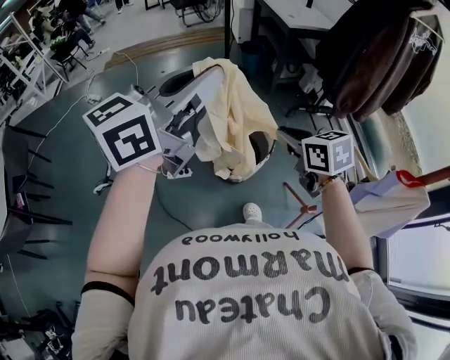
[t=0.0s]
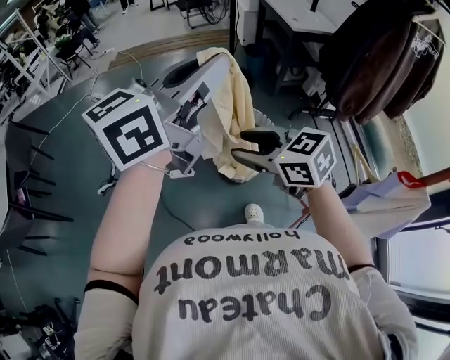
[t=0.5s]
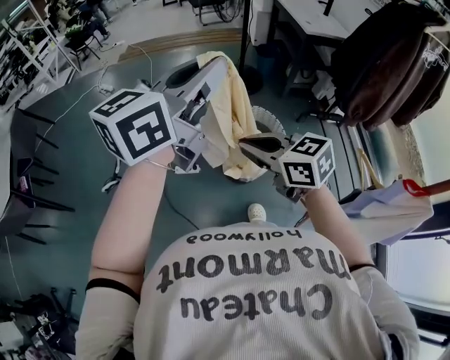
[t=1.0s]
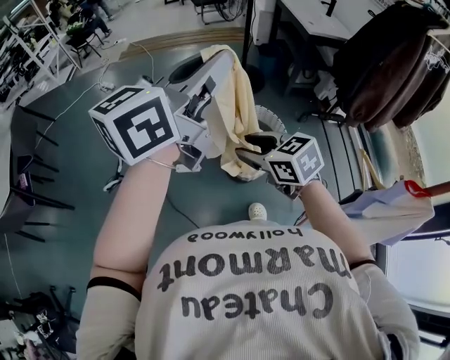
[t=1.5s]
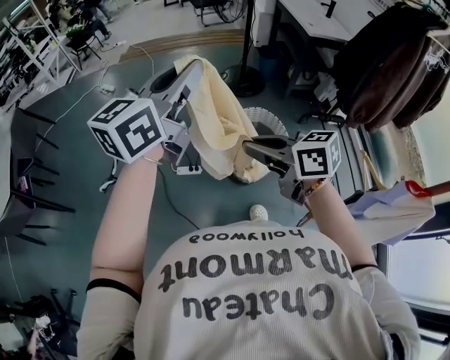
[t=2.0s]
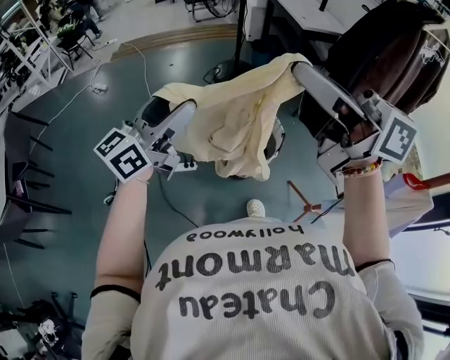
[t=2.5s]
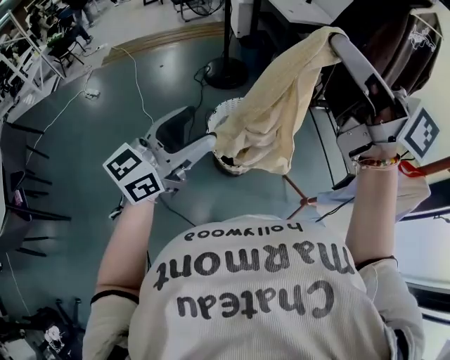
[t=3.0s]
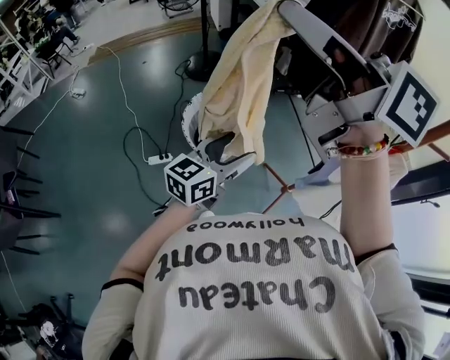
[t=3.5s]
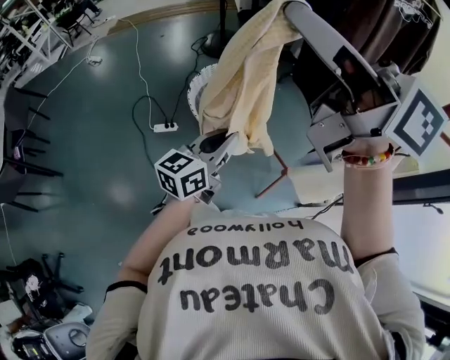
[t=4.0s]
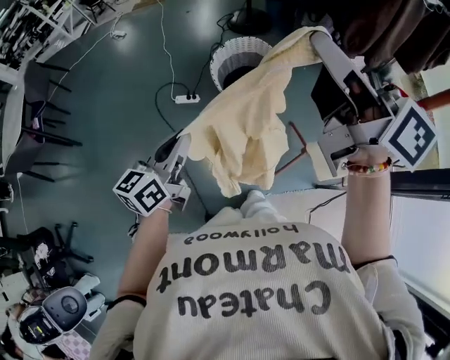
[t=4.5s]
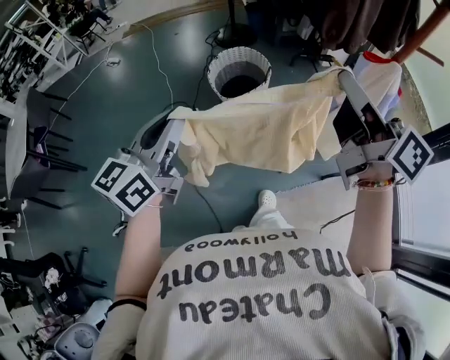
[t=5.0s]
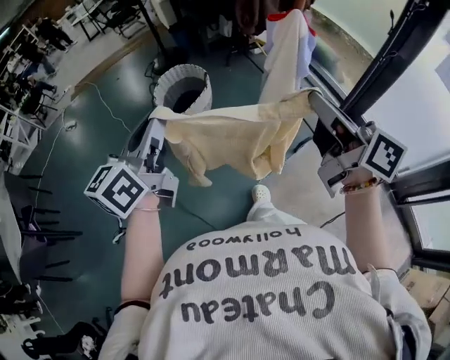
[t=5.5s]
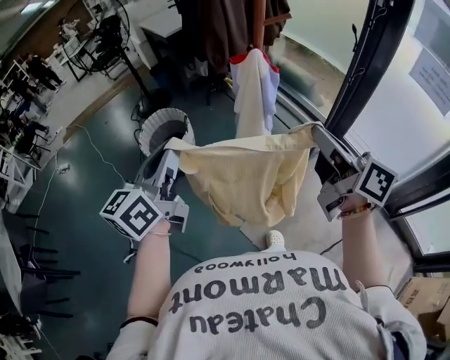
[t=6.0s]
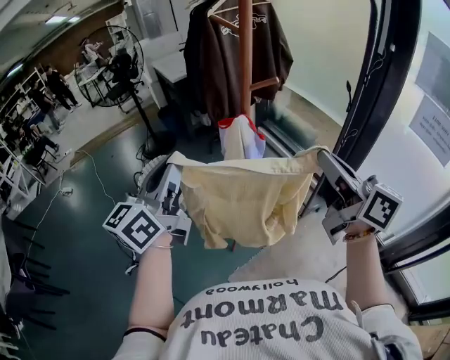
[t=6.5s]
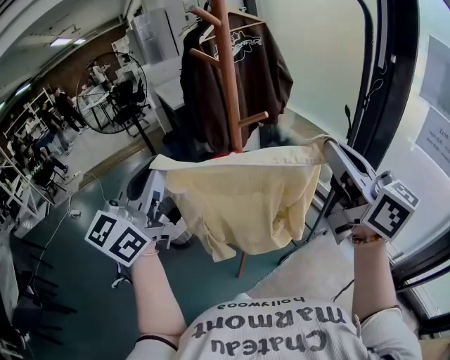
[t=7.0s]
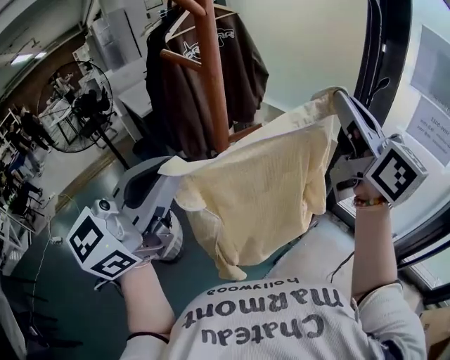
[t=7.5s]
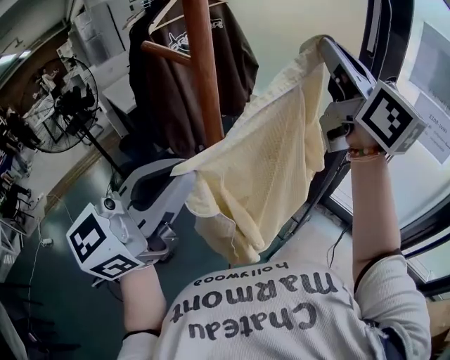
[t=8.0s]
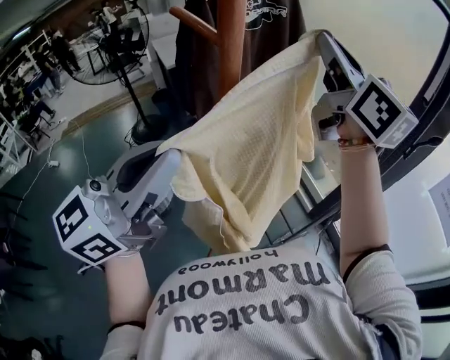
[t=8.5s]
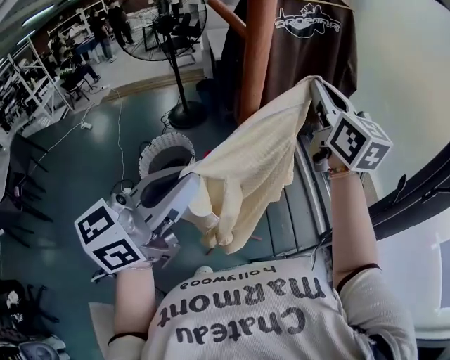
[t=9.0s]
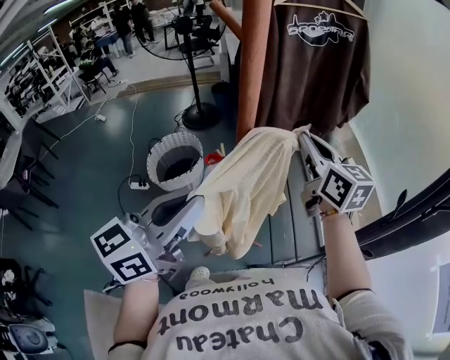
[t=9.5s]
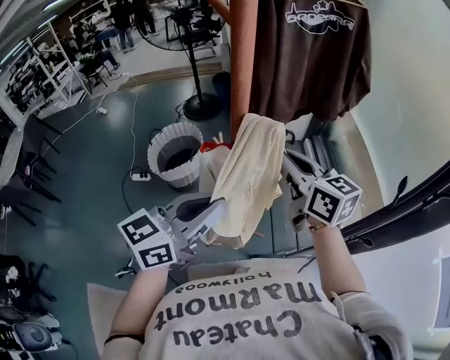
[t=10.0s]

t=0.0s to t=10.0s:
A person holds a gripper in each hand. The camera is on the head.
t=0.0s to t=2.0s: The right gripper moves up and down over approximately 5 cm, changing direction 2 times, turns by approximately 30 degrees, and opens and closes again; the left gripper shifts by roughly 10 cm.
t=2.0s to t=4.0s: The right gripper heads upward, to the right and backward, covering approximately 40 cm, and points its fingers some 30 degrees further upward. The left gripper is displaced backward, to the right and downward by about 40 cm, and opens, then closes once more.
t=4.0s to t=6.0s: The right gripper ends up about 40 cm from where it was, and swivels some 50 degrees. The left gripper shifts by approximately 30 cm.
t=6.0s to t=8.0s: The left gripper ends up about 35 cm from where it was, and rotates approximately 40 degrees; the right gripper moves approximately 50 cm, and turns by roughly 40 degrees.
t=8.0s to t=10.0s: The left gripper shifts about 20 cm downward, and swivels approximately 50 degrees. Meanwhile the right gripper travels downward by roughly 30 cm, and rotates some 60 degrees.

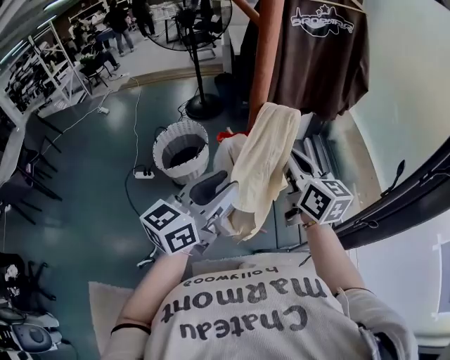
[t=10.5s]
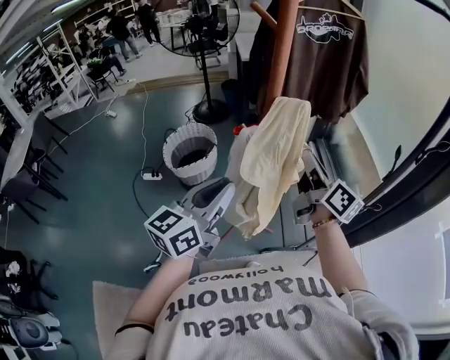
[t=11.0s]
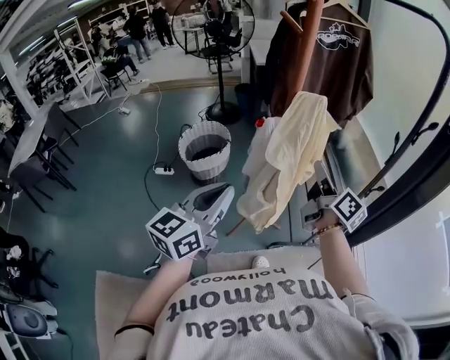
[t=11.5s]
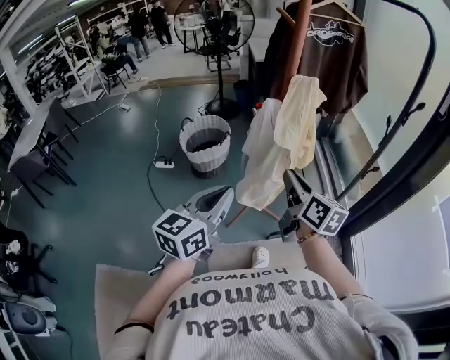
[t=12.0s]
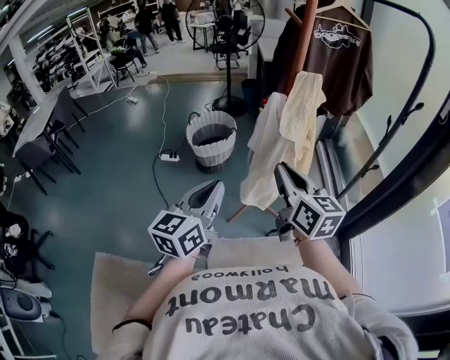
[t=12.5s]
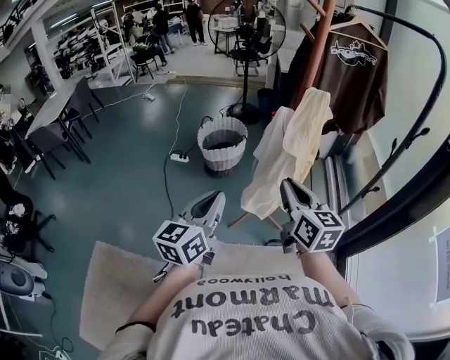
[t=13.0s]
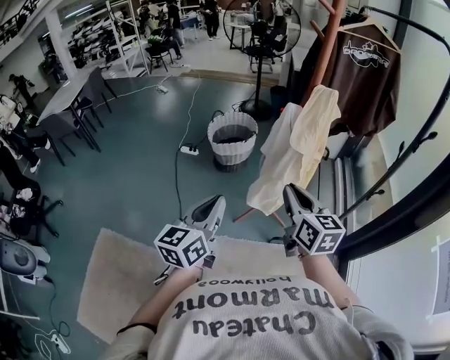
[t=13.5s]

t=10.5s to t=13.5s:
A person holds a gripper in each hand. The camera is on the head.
t=10.5s to t=12.0s: The two grippers go approximately 20 cm backward. The left gripper closes.
t=12.0s to t=13.5s: The left gripper travels backward by some 5 cm, and turns by some 20 degrees. Meanwhile the right gripper swivels about 20 degrees.

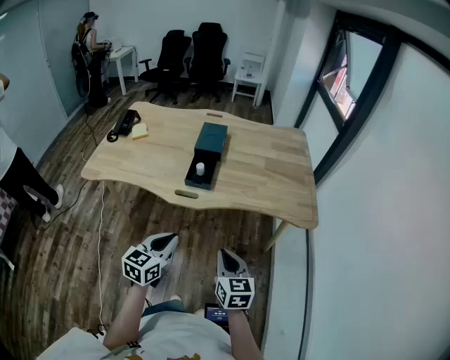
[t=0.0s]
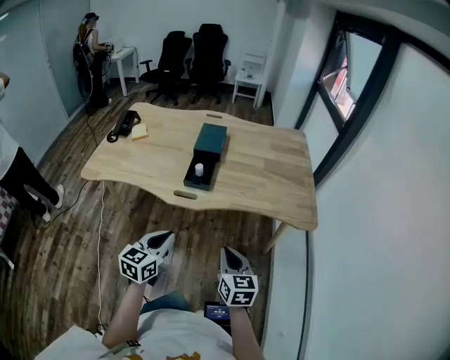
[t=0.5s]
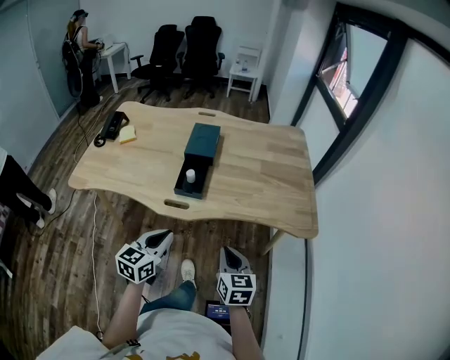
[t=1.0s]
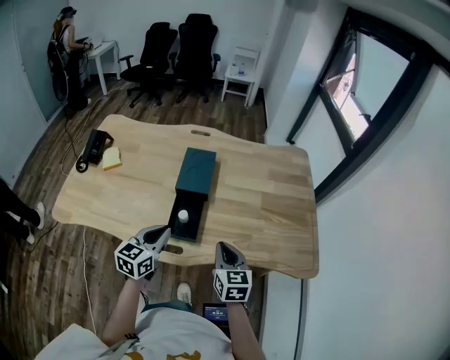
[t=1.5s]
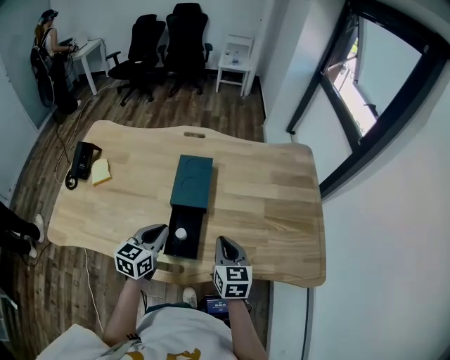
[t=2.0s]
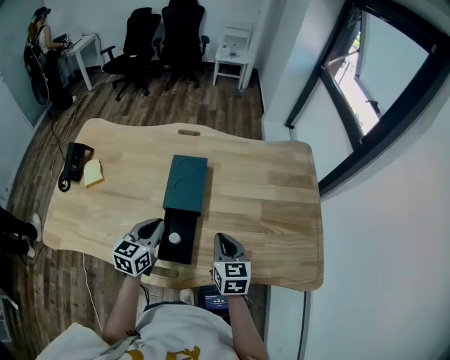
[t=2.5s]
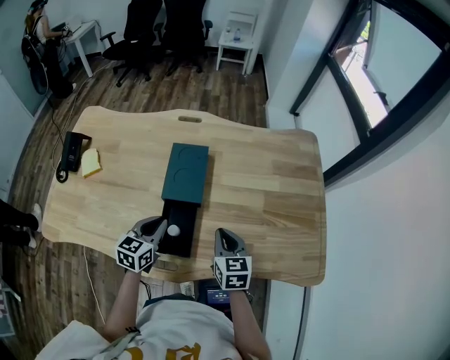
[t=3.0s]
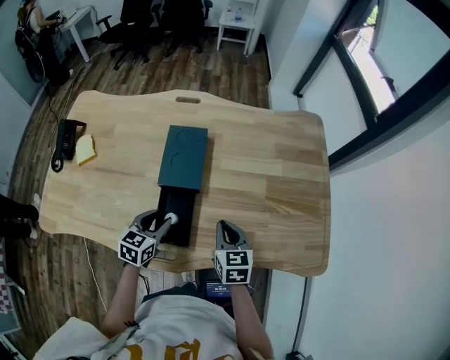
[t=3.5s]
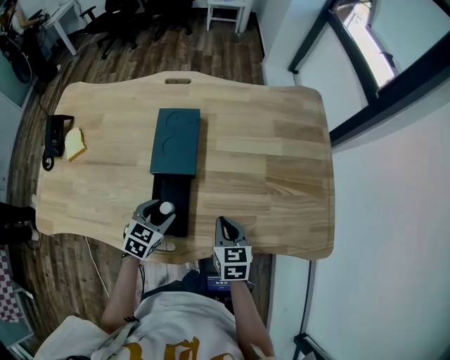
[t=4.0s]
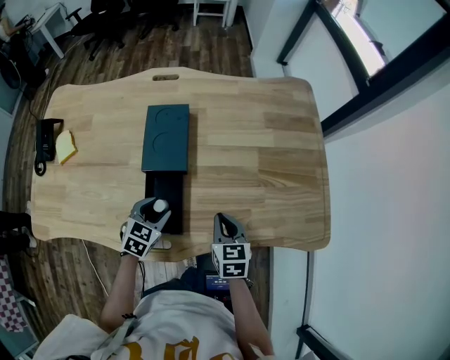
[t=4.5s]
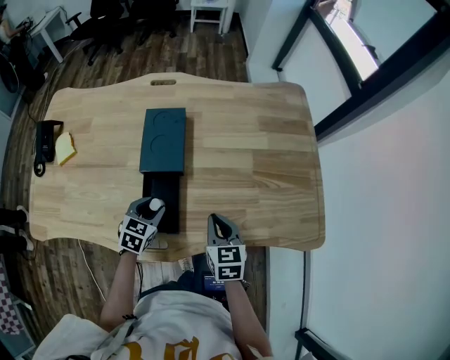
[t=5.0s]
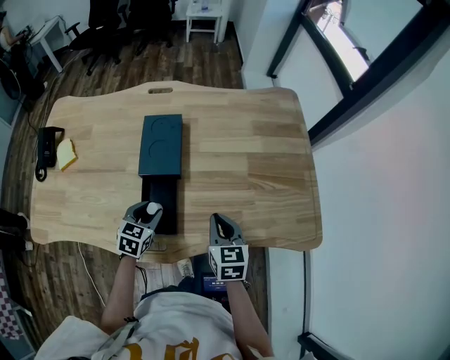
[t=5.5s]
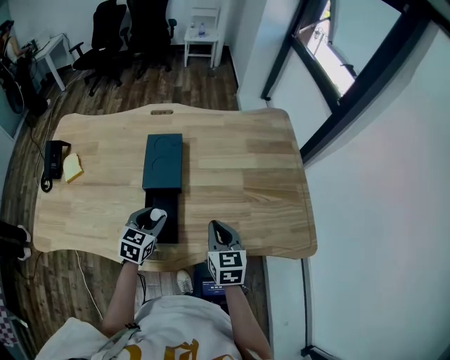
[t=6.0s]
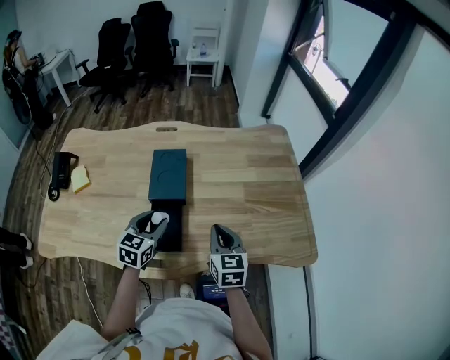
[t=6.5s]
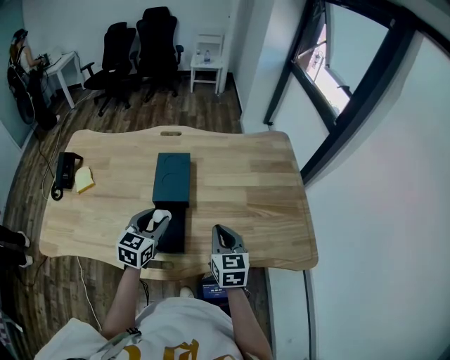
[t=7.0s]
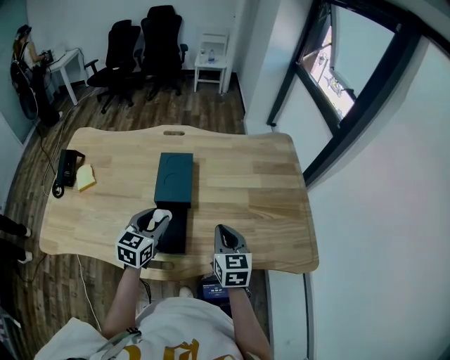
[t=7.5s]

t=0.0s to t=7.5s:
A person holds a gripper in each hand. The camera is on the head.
t=0.0s to t=2.0s: The pair of grippers is taken forward, approximately 40 cm.
t=2.0s to t=4.0s: The two grippers go about 10 cm downward. The left gripper changes its angle by about 30 degrees, and opens.
t=4.0s to t=5.5s: The right gripper is displaced upward by roughly 5 cm.
t=5.5s to t=7.5s: The right gripper moves upward, approximately 5 cm; the left gripper travels upward by about 15 cm.

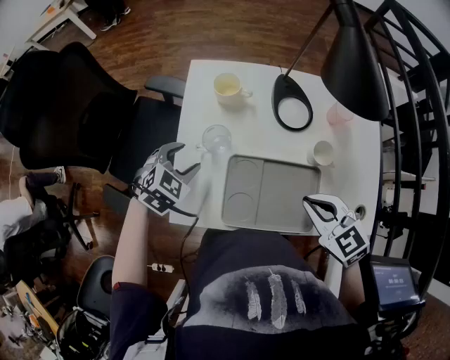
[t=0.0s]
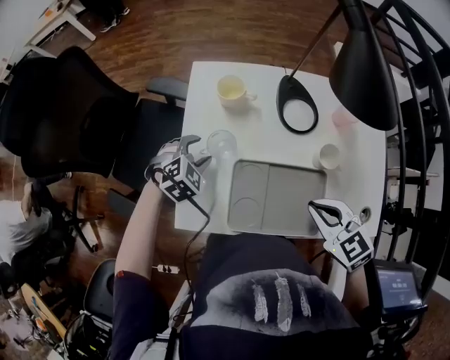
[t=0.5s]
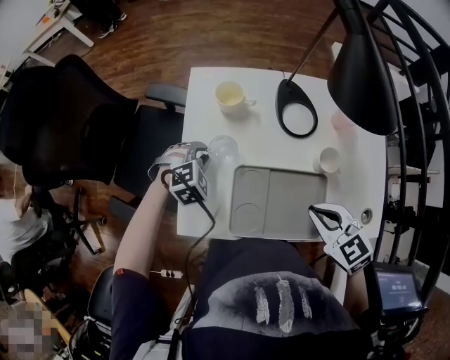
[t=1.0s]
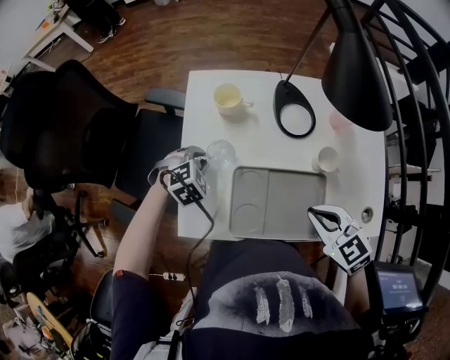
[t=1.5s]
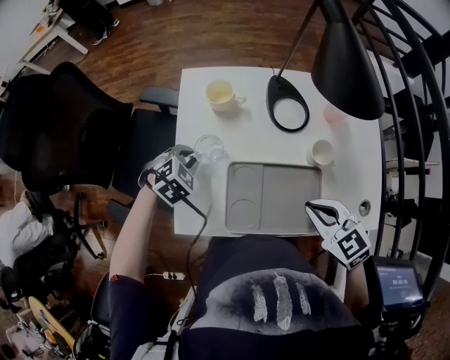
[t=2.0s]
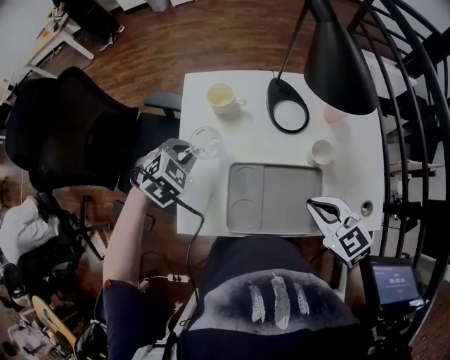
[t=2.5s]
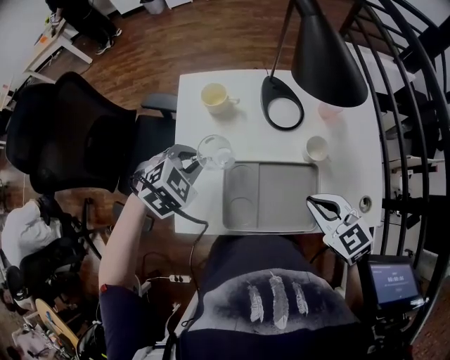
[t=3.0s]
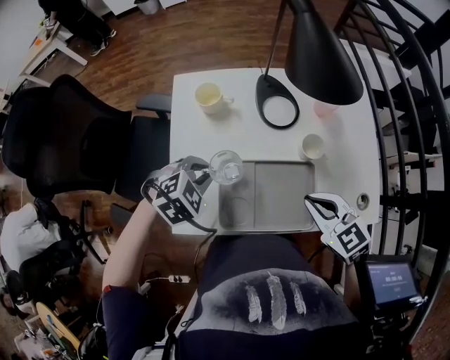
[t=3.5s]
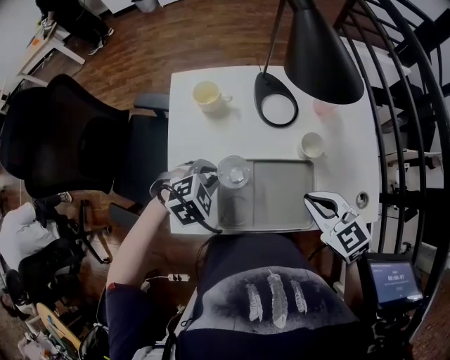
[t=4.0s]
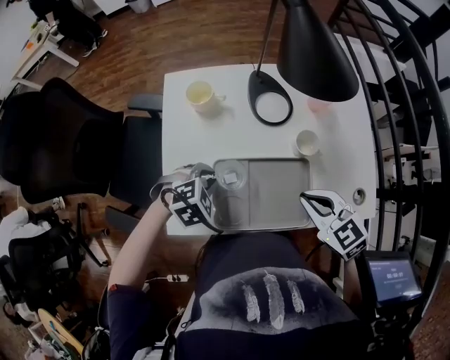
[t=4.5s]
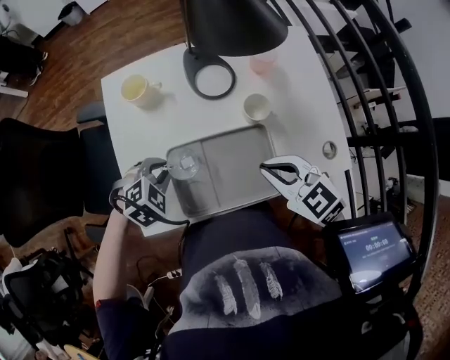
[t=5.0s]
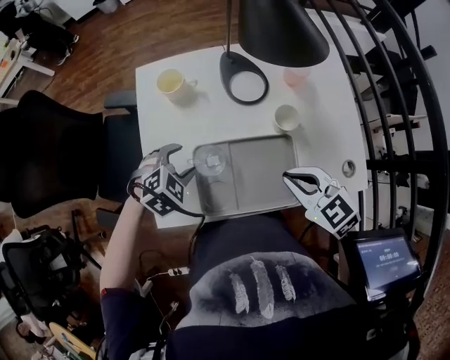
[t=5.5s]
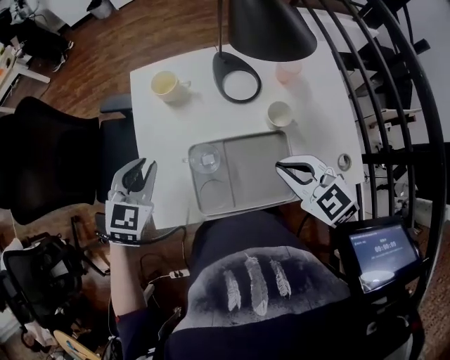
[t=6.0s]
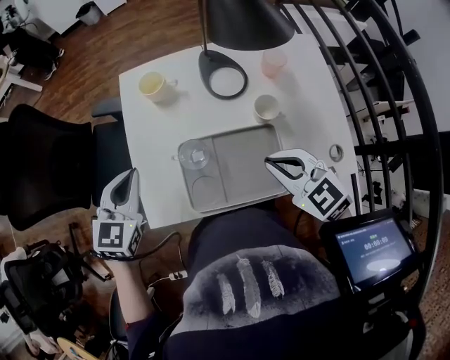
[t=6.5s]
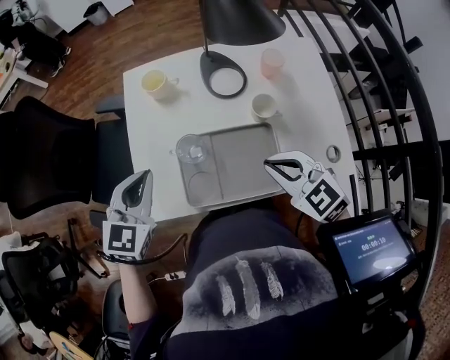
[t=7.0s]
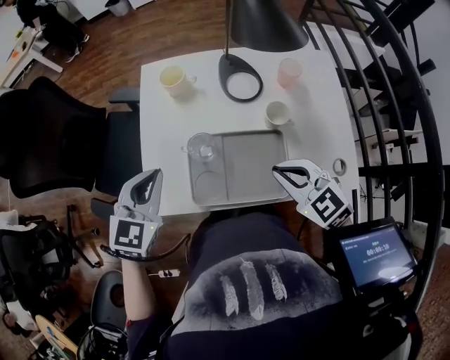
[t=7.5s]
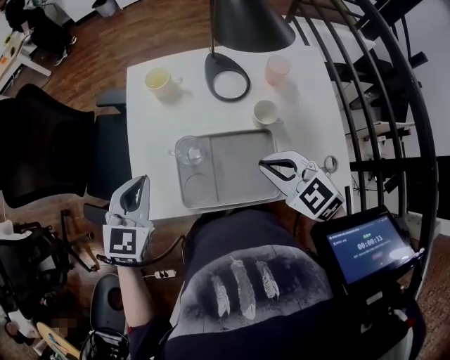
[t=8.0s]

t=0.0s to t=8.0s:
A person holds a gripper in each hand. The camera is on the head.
t=0.0s to t=2.0s: The left gripper ends up roughly 5 cm from where it was, and closes up.
t=2.0s to t=4.0s: The left gripper heads to the right and backward, covering roughly 10 cm.
t=4.0s to t=6.0s: The left gripper goes about 10 cm to the left and upward, rotates approximately 40 degrees, and opens, then closes once more.
t=6.0s to t=8.0s: The left gripper is displaced backward by roughly 10 cm, and closes.
